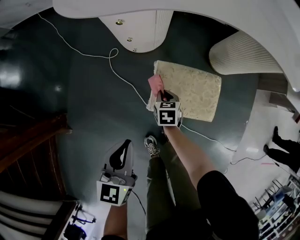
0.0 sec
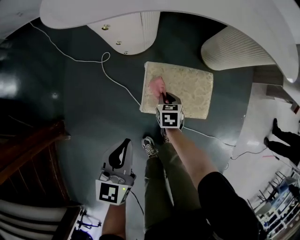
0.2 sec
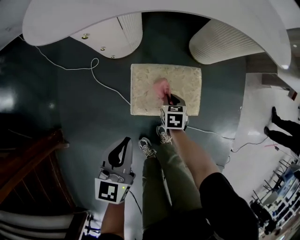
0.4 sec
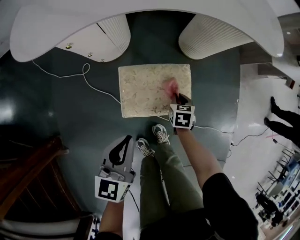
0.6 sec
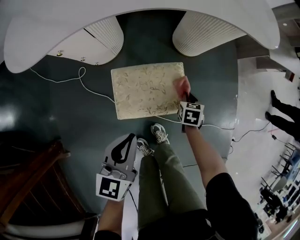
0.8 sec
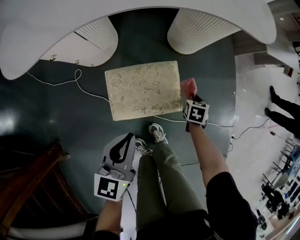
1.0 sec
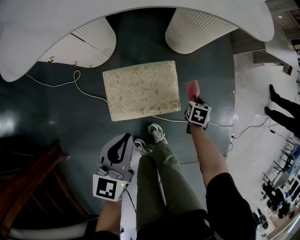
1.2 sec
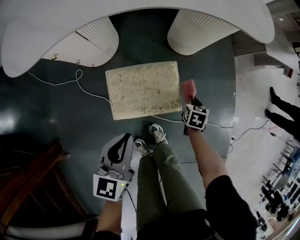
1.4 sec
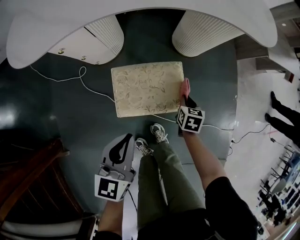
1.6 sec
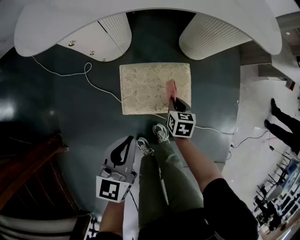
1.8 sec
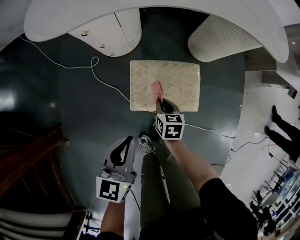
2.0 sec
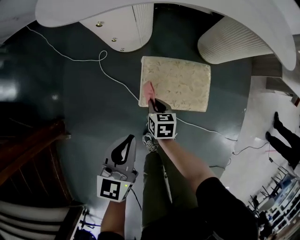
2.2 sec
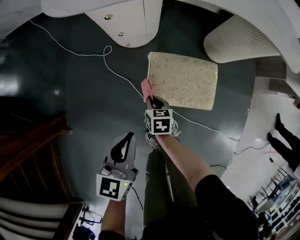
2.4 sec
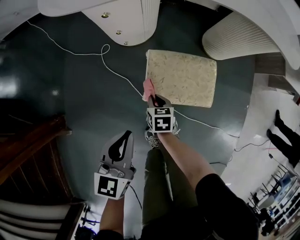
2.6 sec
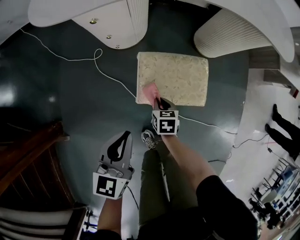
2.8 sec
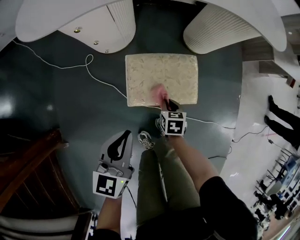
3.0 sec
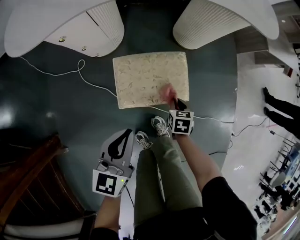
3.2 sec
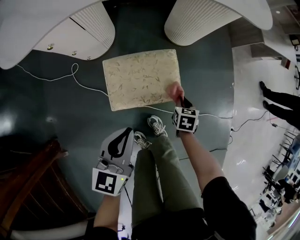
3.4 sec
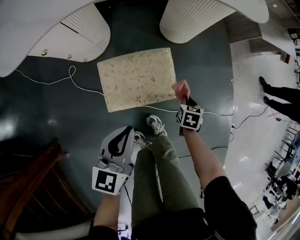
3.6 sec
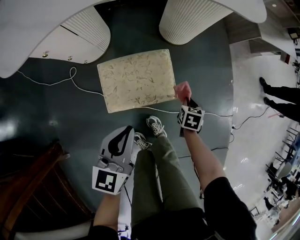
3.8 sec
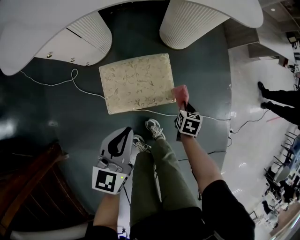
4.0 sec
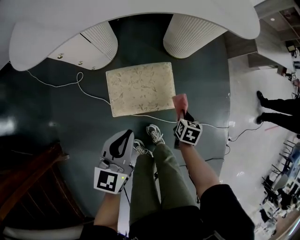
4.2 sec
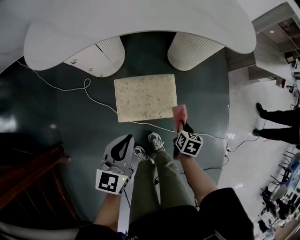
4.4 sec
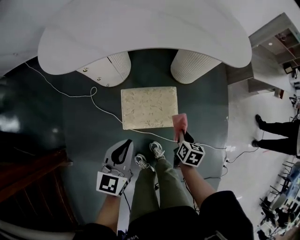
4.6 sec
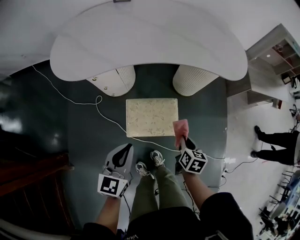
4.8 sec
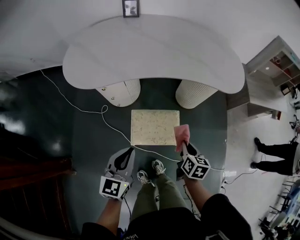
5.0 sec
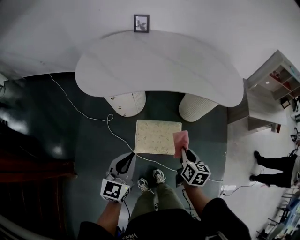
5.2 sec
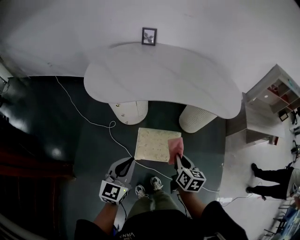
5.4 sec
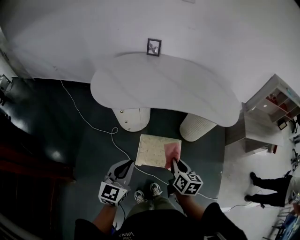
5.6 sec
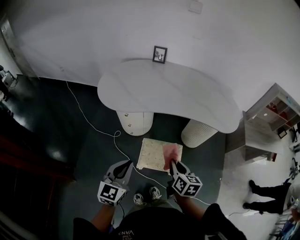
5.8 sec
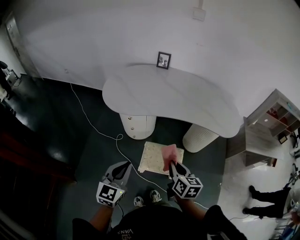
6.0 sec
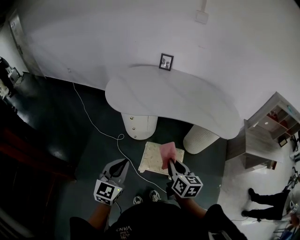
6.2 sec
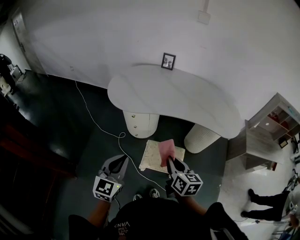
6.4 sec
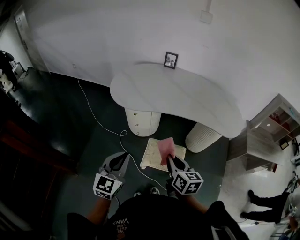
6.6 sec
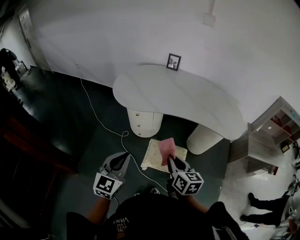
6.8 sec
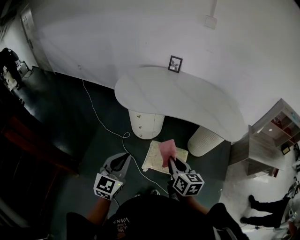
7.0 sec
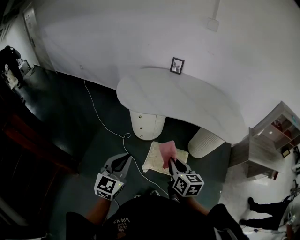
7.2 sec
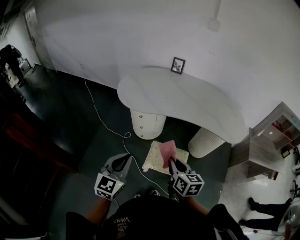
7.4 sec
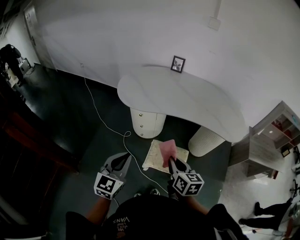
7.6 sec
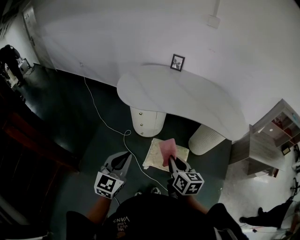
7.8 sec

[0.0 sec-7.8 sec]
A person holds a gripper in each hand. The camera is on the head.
0.0 sec to 1.6 sec: The right gripper moves about 30 cm, and changes its angle by some 30 degrees. Meanwhile the left gripper moves approximately 15 cm.
3.2 sec to 4.6 sec: The left gripper goes approximately 10 cm upward; the right gripper moves upward, roughly 15 cm.
4.6 sec to 6.2 sec: The left gripper travels upward and to the left by about 25 cm, and rotates roughly 20 degrees. Meanwhile the right gripper is displaced upward and to the left by about 40 cm, and turns by approximately 40 degrees.
6.2 sec to 7.8 sec: The grippers stay close to where they were, moving slightly.

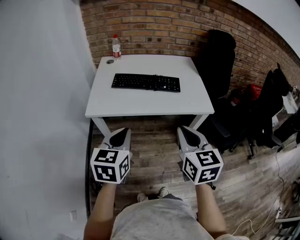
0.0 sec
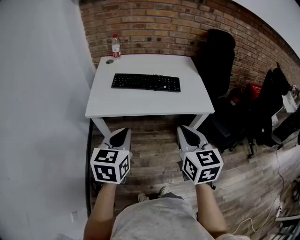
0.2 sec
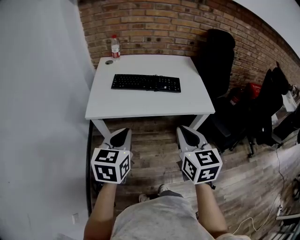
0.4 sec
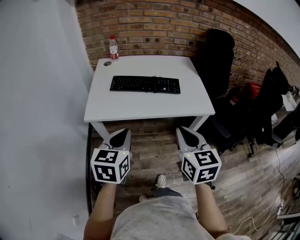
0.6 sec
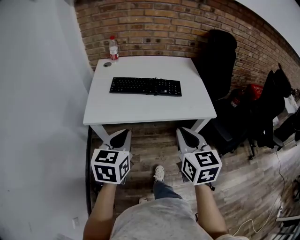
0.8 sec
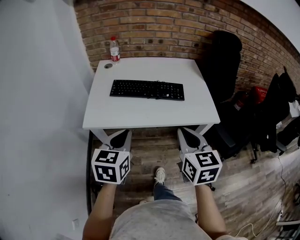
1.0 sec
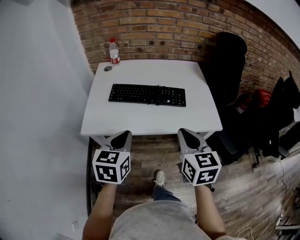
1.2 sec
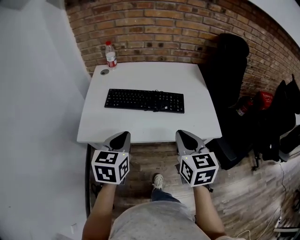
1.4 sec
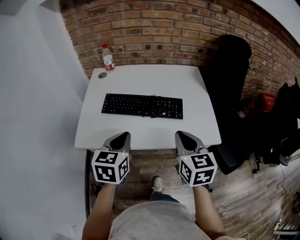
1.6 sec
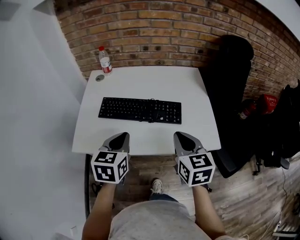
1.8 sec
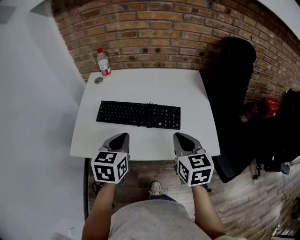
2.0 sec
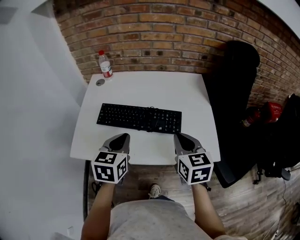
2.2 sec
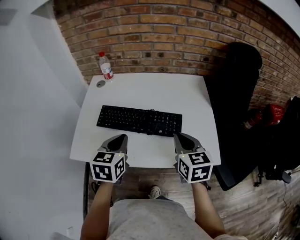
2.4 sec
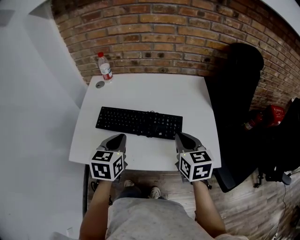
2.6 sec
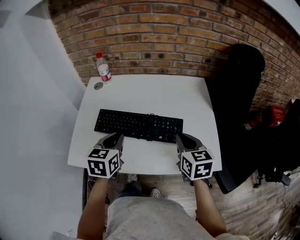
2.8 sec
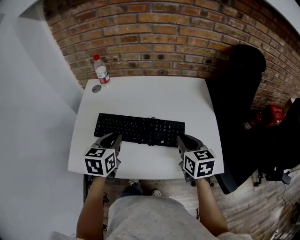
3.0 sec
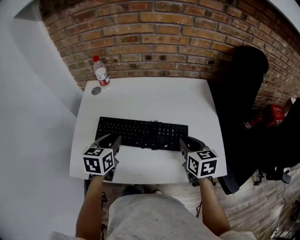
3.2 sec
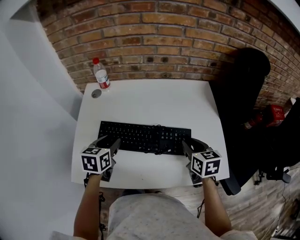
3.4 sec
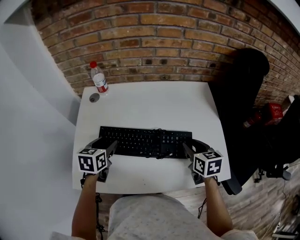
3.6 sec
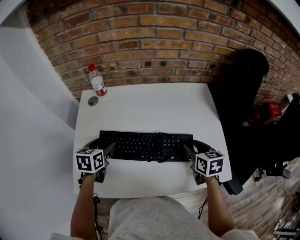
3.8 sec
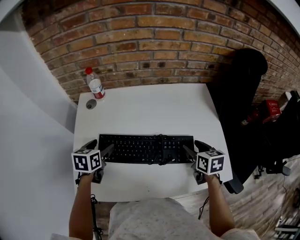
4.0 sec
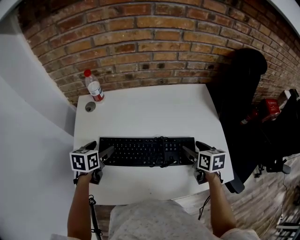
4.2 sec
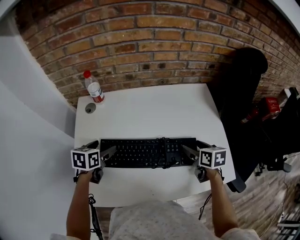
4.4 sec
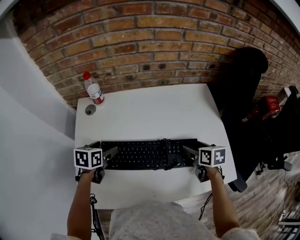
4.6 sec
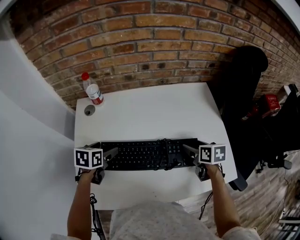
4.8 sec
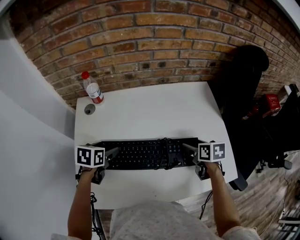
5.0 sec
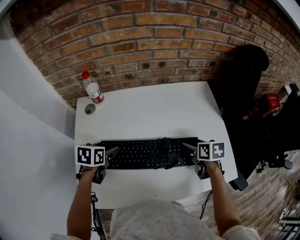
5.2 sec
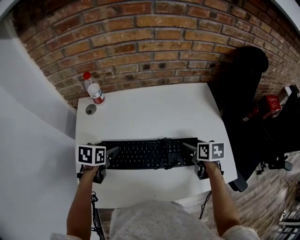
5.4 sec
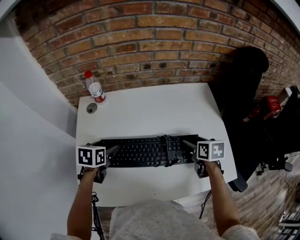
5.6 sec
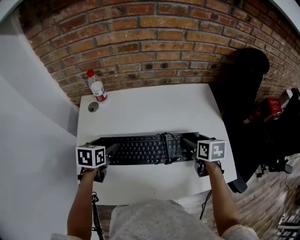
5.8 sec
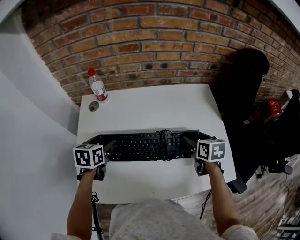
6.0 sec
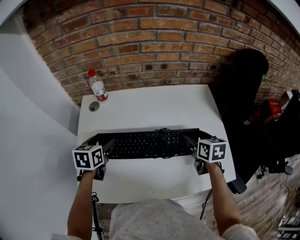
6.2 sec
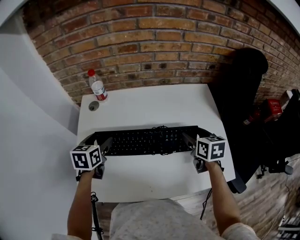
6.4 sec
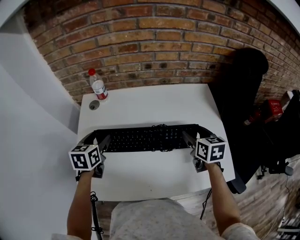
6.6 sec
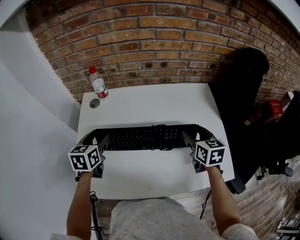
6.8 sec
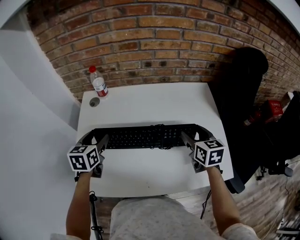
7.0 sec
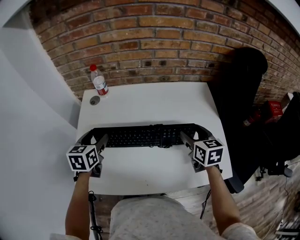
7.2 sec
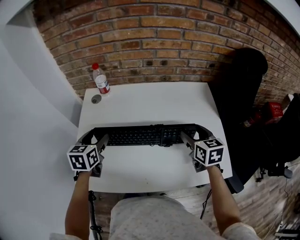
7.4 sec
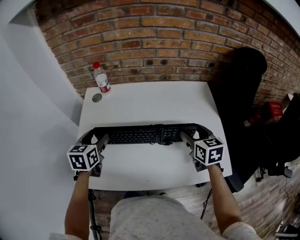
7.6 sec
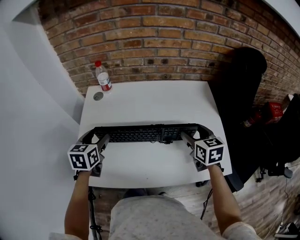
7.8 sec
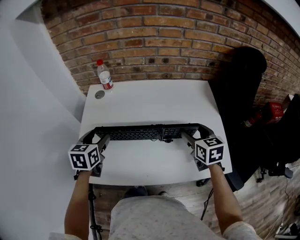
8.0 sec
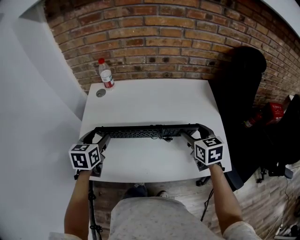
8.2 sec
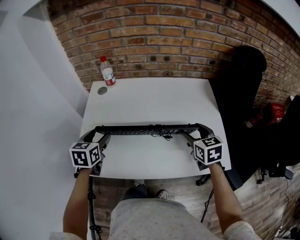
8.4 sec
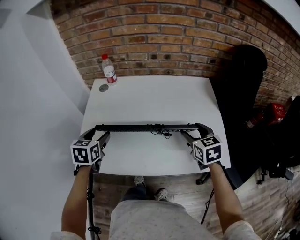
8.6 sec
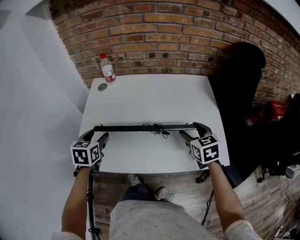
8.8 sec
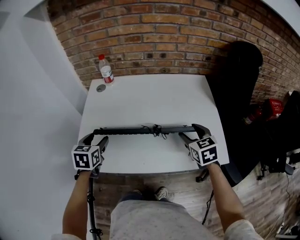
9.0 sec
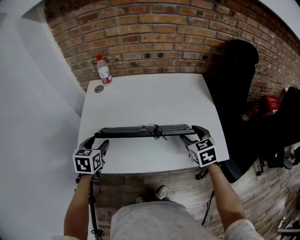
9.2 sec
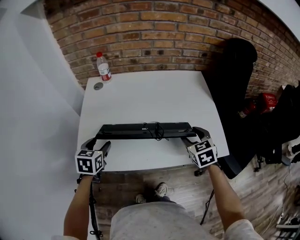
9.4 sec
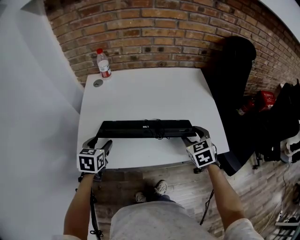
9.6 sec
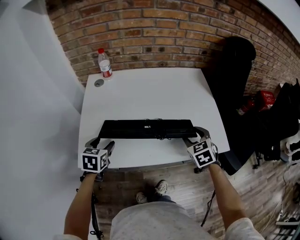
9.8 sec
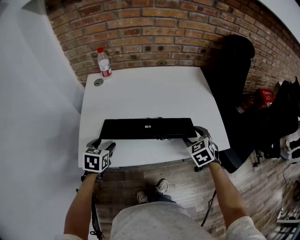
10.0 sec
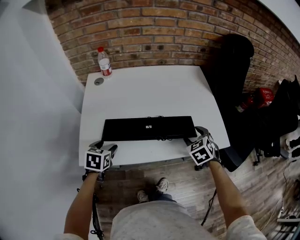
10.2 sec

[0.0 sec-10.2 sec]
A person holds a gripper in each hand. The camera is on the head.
0.0 sec to 1.4 sec: Both grippers travel together forward, about 20 cm.
1.4 sec to 3.0 sec: Both grippers move forward, about 20 cm.
3.0 sec to 4.4 sec: The right gripper heads forward and downward, covering approximately 10 cm, rotates approximately 20 degrees, and opens. Meanwhile the left gripper travels forward, to the left and downward by roughly 20 cm, rotates roughly 20 degrees, and opens its fingers.
4.4 sec to 5.8 sec: The grippers make only small movements.
5.8 sec to 7.2 sec: The grippers both shift upward by approximately 5 cm. The right gripper turns by roughly 20 degrees.
7.2 sec to 8.8 sec: Both grippers travel together backward, approximately 10 cm.
8.8 sec to 10.2 sec: The right gripper goes approximately 10 cm backward and downward, and turns by some 30 degrees. The left gripper is displaced downward and backward by some 10 cm.

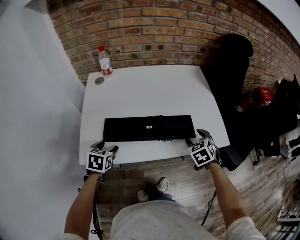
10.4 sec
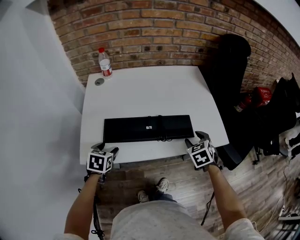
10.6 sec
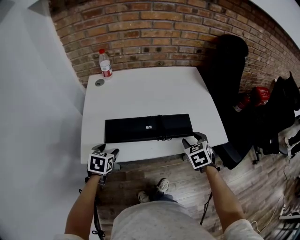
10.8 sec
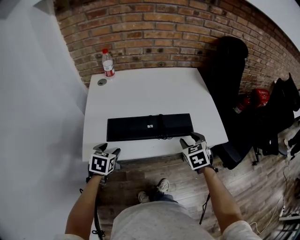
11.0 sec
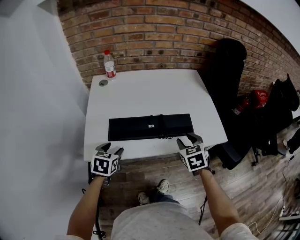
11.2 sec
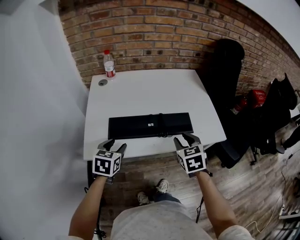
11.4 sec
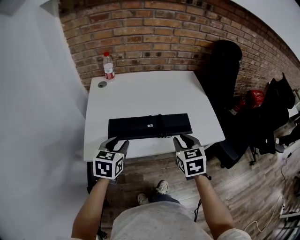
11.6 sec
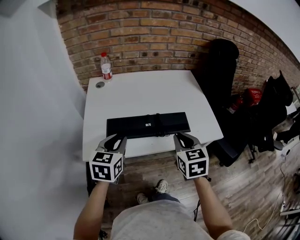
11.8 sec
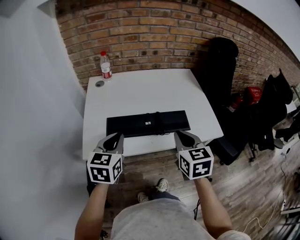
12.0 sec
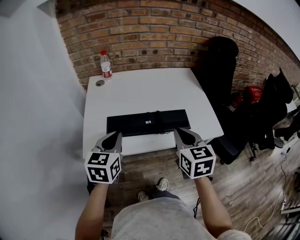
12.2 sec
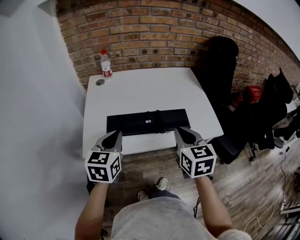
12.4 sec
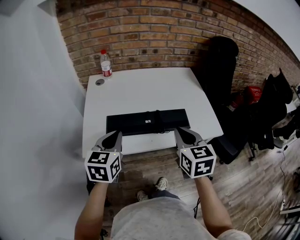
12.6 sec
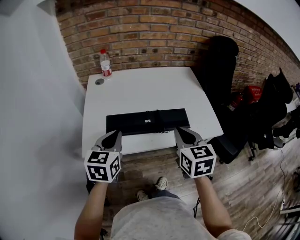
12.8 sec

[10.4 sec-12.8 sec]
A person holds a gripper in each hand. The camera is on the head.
10.4 sec to 11.6 sec: The right gripper is displaced upward, backward and to the left by some 15 cm, swivels some 30 degrees, and closes up. Meanwhile the left gripper goes about 10 cm upward and to the right.
11.6 sec to 12.8 sec: Both grippers travel together upward, some 5 cm. The left gripper closes up.

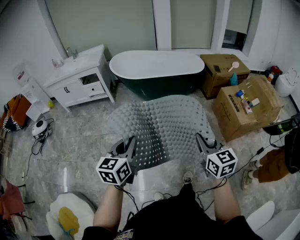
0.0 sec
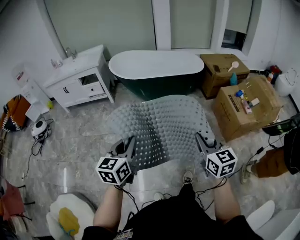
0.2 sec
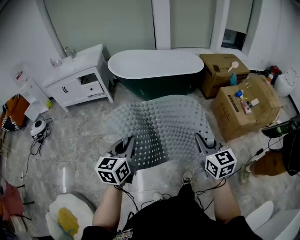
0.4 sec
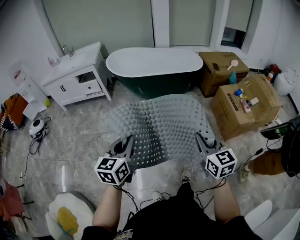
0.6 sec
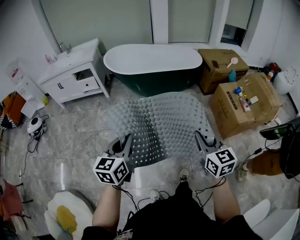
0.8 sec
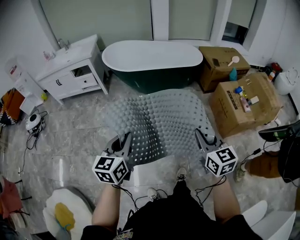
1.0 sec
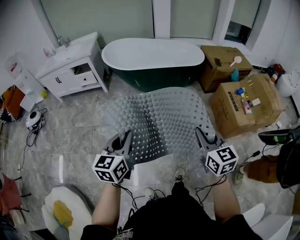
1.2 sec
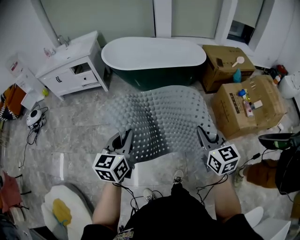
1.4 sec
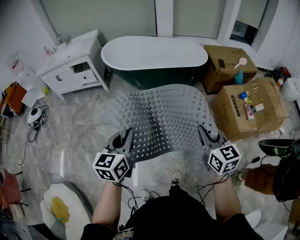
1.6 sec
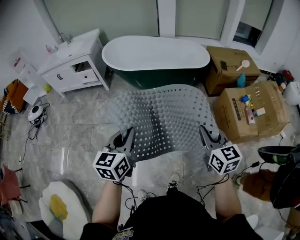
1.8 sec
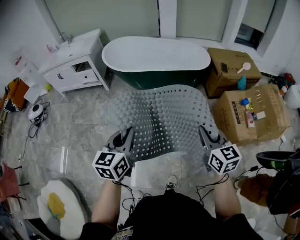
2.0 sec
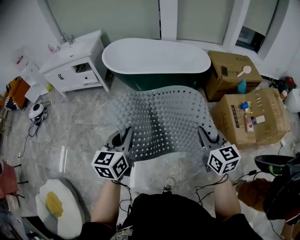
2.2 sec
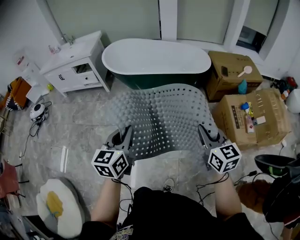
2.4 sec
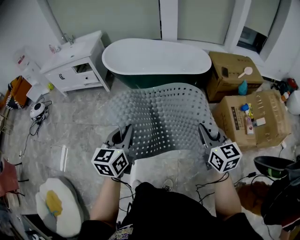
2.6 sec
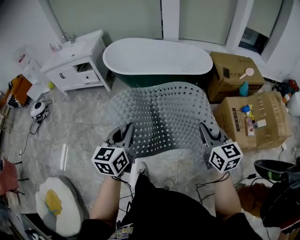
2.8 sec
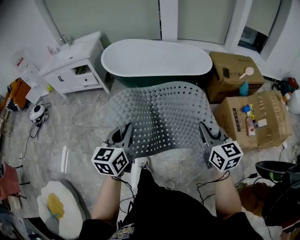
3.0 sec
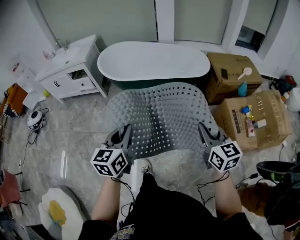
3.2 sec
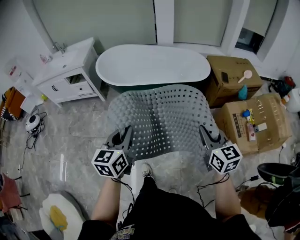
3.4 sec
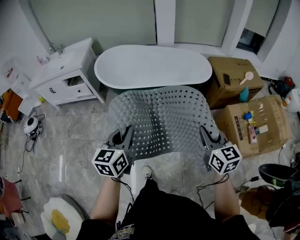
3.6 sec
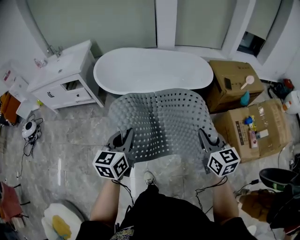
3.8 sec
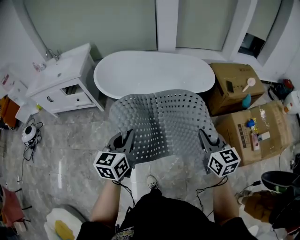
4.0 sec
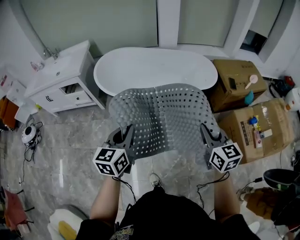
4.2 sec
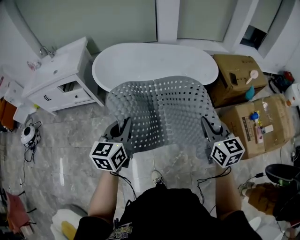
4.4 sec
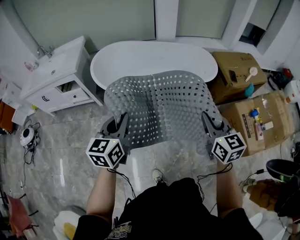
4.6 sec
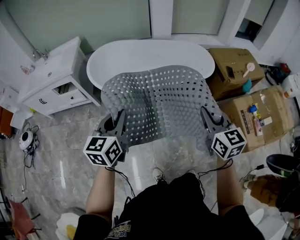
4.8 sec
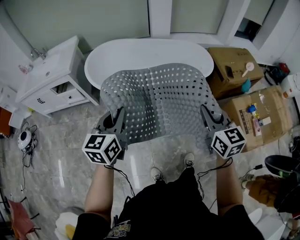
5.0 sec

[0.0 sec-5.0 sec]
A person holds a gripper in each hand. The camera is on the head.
0.0 sec to 1.6 sec: Both grippers move forward and to the right, approximately 20 cm.
1.6 sec to 3.4 sec: The two grippers go some 20 cm forward.
3.4 sec to 5.0 sec: Both grippers move forward and to the left, approximately 25 cm.
